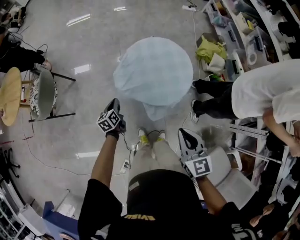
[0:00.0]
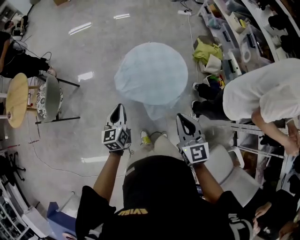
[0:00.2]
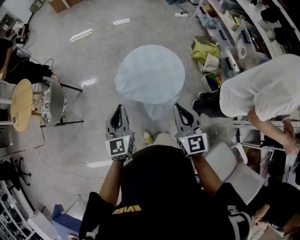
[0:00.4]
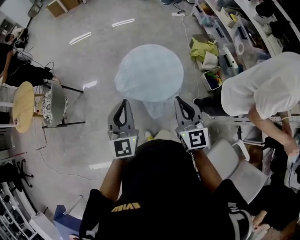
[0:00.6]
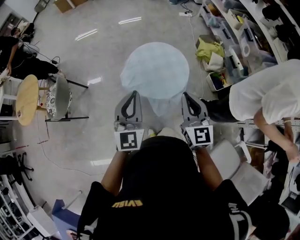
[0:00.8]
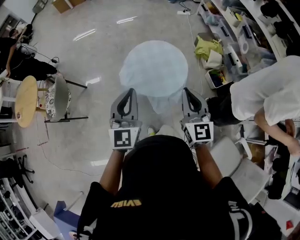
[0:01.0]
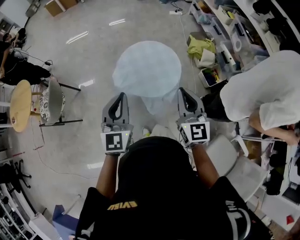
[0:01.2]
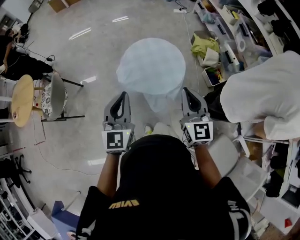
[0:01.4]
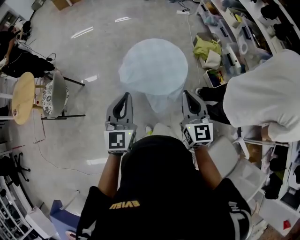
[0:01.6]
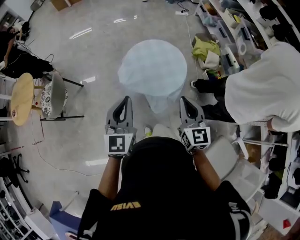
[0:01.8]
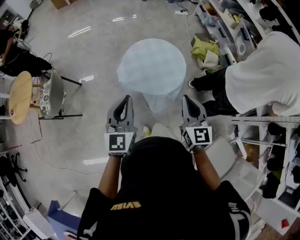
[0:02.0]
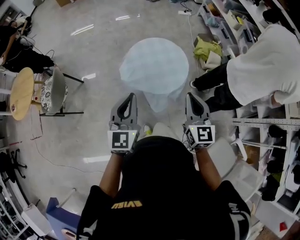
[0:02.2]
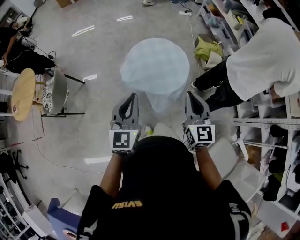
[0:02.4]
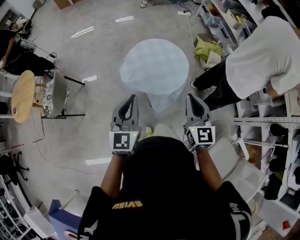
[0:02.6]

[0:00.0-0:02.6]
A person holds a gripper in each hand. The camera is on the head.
0:00.0 to 0:01.2: The left gripper goes about 40 cm upward, and tips its fingers upward by about 30 degrees. The right gripper moves upward, approximately 15 cm, and changes its angle by approximately 20 degrees.
0:01.2 to 0:02.6: The grippers stay close to where they were, moving slightly.

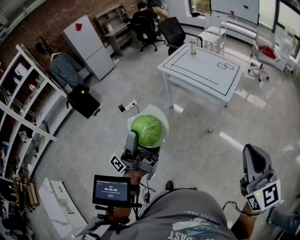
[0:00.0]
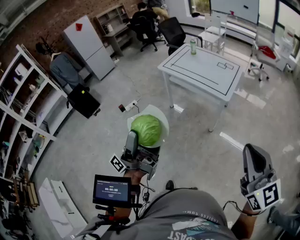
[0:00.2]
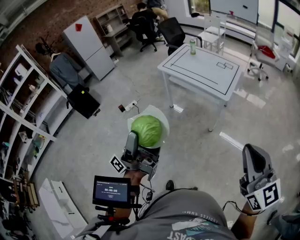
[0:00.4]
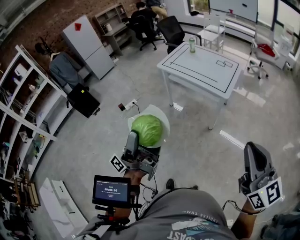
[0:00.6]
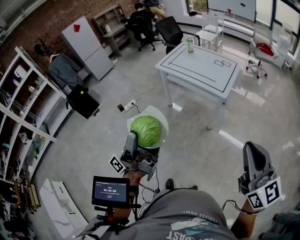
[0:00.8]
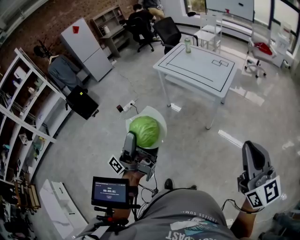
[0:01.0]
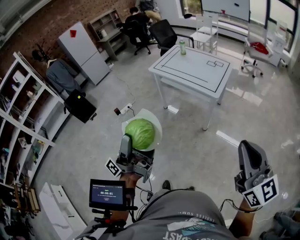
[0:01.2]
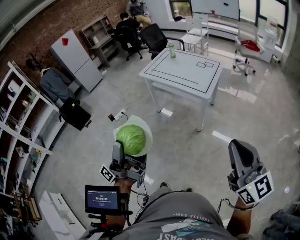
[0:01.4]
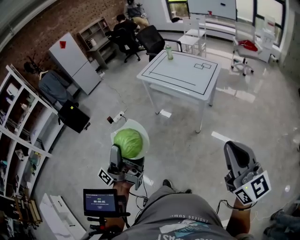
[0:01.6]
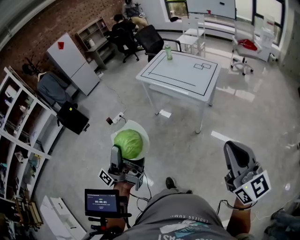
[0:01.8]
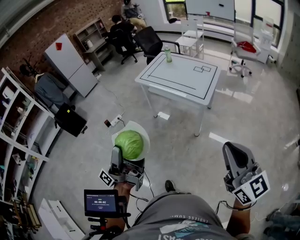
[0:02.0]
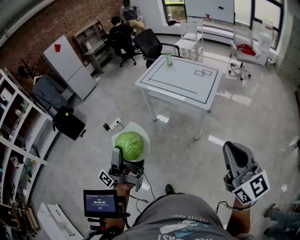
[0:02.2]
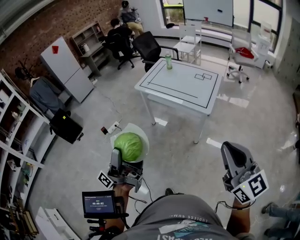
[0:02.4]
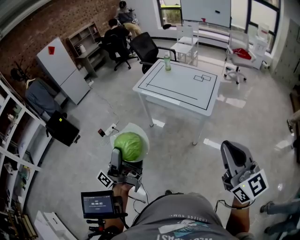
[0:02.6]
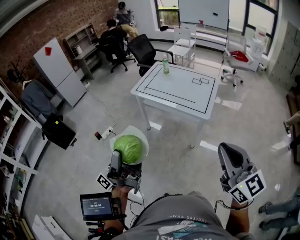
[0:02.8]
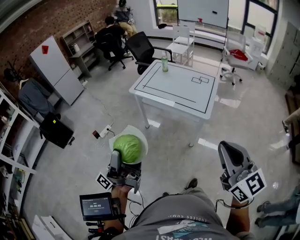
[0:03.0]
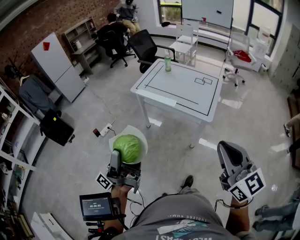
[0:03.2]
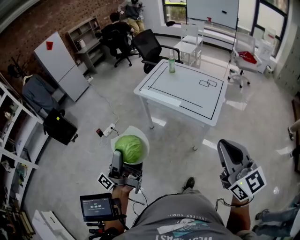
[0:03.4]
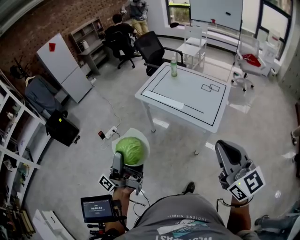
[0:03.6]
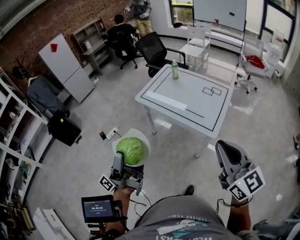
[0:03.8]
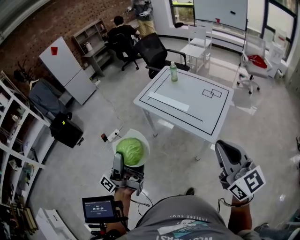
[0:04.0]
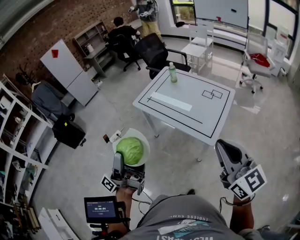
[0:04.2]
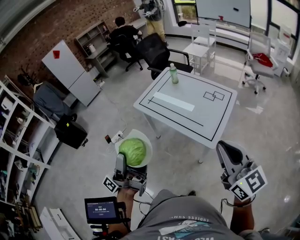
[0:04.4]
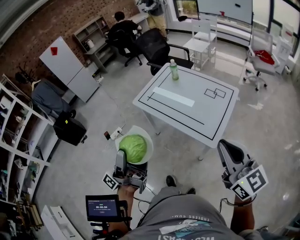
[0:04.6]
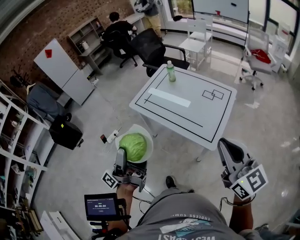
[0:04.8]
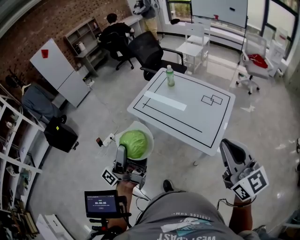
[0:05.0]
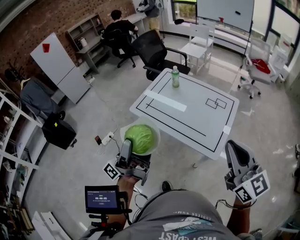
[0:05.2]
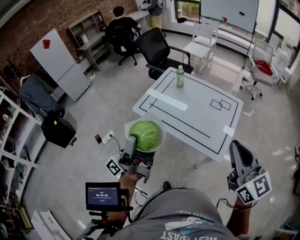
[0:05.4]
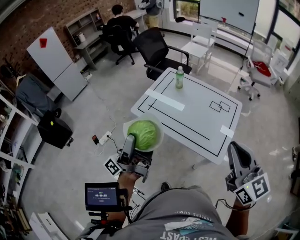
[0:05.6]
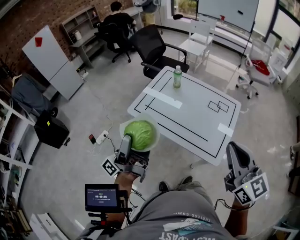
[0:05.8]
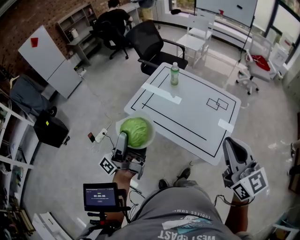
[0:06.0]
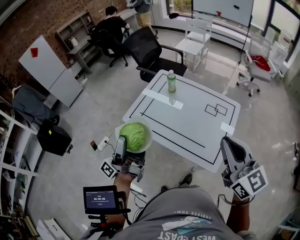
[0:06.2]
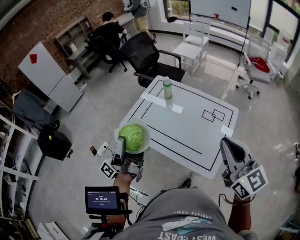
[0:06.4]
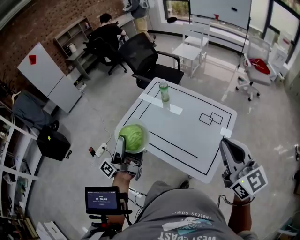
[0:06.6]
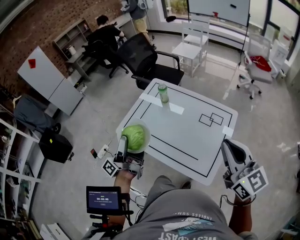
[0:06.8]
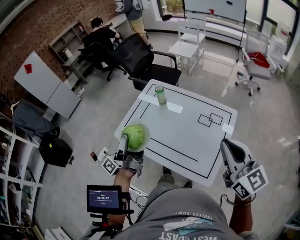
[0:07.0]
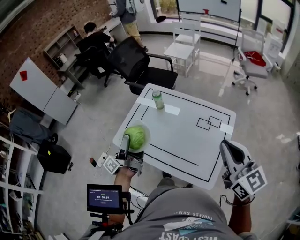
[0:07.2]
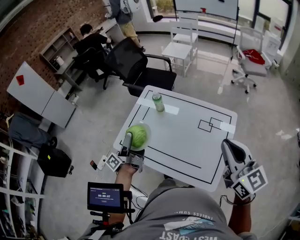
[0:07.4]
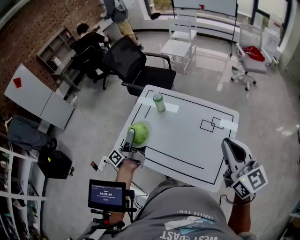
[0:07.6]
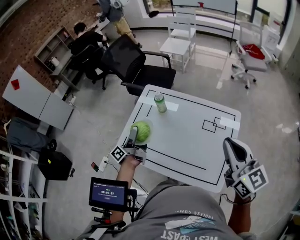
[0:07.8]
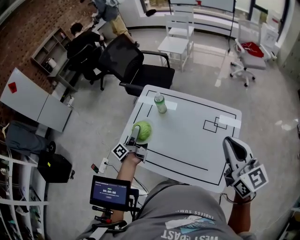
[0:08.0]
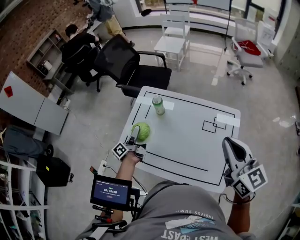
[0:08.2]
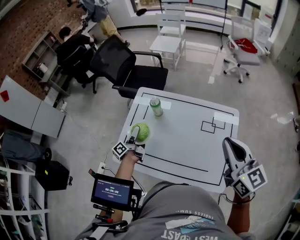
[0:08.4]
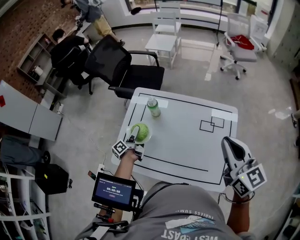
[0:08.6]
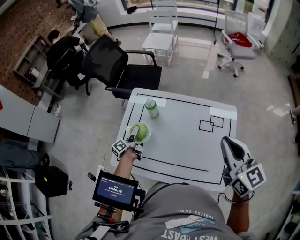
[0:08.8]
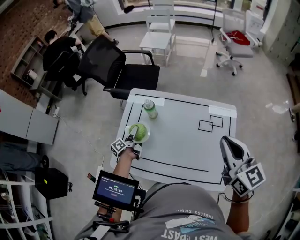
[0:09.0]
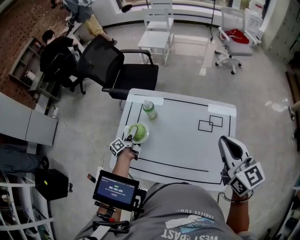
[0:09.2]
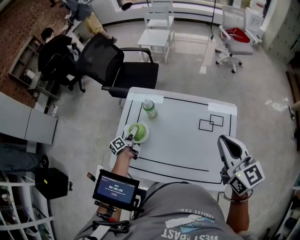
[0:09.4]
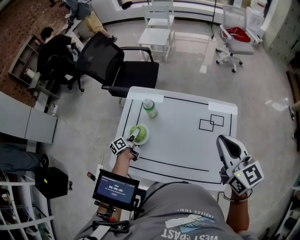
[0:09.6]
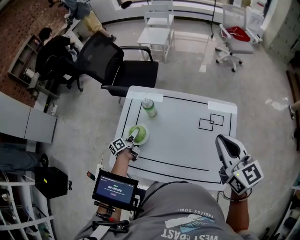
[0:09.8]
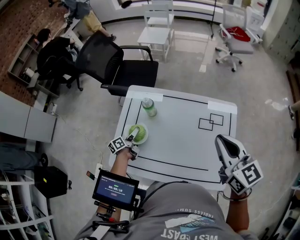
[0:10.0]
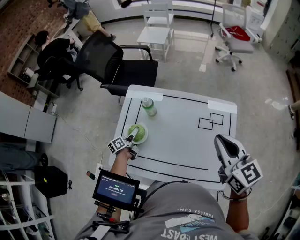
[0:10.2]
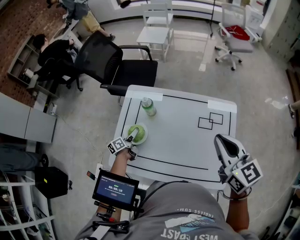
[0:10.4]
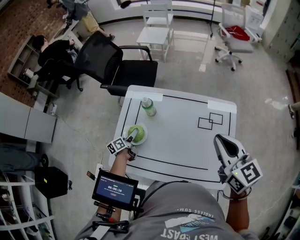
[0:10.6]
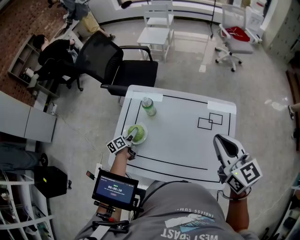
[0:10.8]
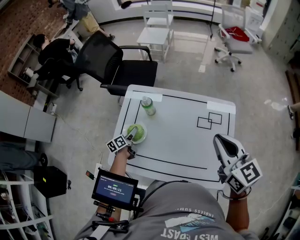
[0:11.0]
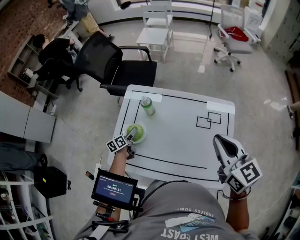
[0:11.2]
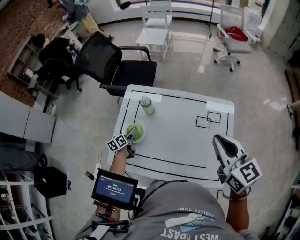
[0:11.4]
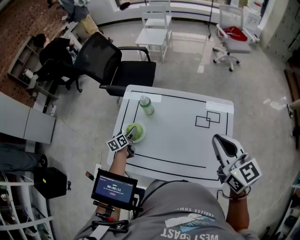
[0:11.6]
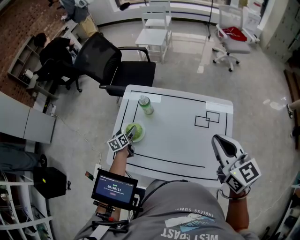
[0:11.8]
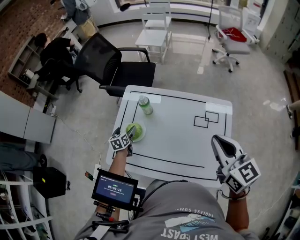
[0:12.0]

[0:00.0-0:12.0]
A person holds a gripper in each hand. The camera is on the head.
0:00.0 to 0:01.6: Both grippers travel together to the right, roughly 5 cm.
0:01.6 to 0:03.0: Both grippers move forward and to the left, about 20 cm.
0:03.0 to 0:04.4: Both grippers move forward and to the right, roughly 20 cm.
0:04.4 to 0:06.0: Both grippers travel together forward, approximately 20 cm.
0:06.0 to 0:07.6: The right gripper moves forward and to the right, about 20 cm; the left gripper shifts about 30 cm forward and downward, and swivels approximately 20 degrees.
0:07.6 to 0:09.0: The left gripper moves downward and forward, approximately 25 cm, and rotates about 30 degrees. Meanwhile the right gripper goes roughly 5 cm forward.
0:09.0 to 0:10.4: The grippers stay close to where they were, moving slightly.
0:10.4 to 0:12.0: The left gripper turns by about 40 degrees.

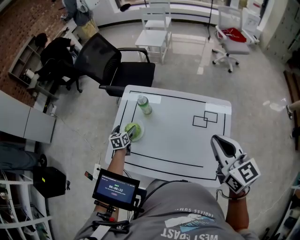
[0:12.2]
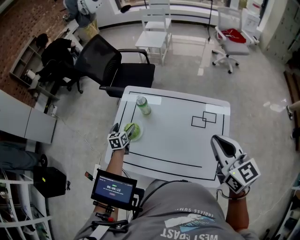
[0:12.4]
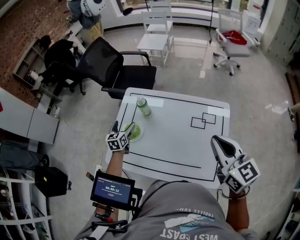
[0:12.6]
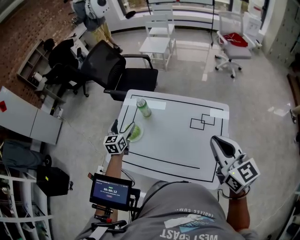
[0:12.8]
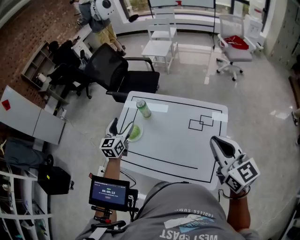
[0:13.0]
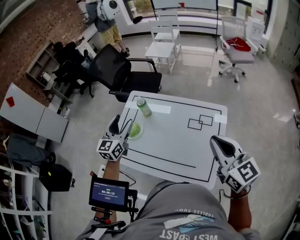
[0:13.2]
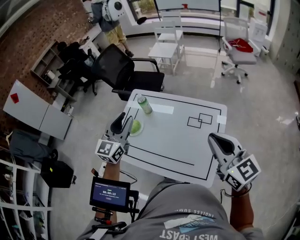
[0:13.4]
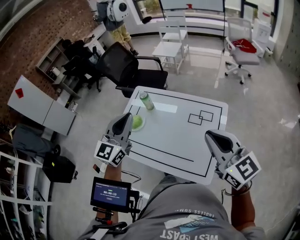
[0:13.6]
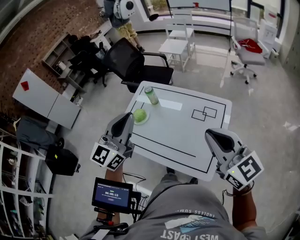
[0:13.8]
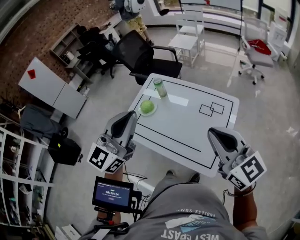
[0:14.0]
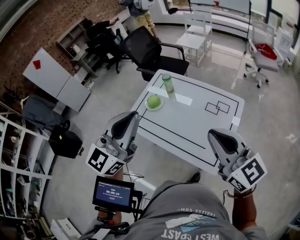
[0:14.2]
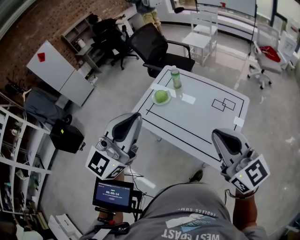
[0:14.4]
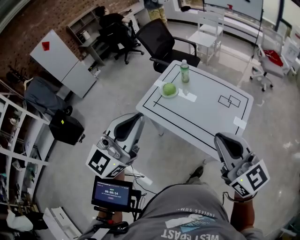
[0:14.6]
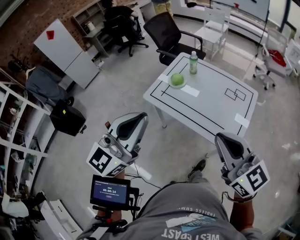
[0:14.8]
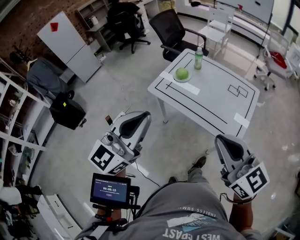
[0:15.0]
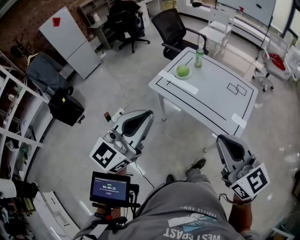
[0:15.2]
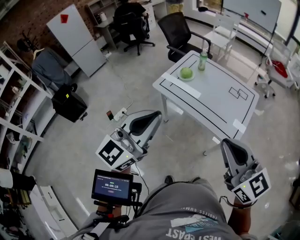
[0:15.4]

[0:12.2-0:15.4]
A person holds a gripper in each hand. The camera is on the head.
0:12.2 to 0:13.8: The left gripper is displaced upward and backward by roughly 50 cm, points its fingers roughly 50 degrees further upward, and closes; the right gripper travels backward and upward by about 15 cm, and turns by some 20 degrees.
0:13.8 to 0:15.4: The two grippers go approximately 35 cm backward and to the left.

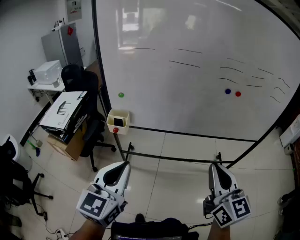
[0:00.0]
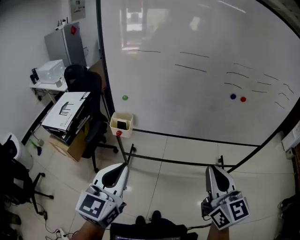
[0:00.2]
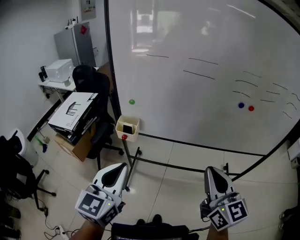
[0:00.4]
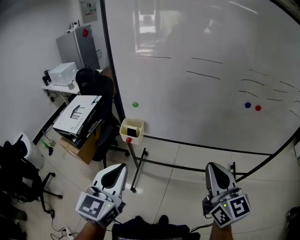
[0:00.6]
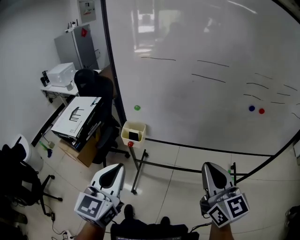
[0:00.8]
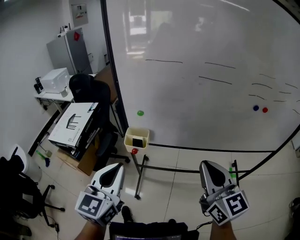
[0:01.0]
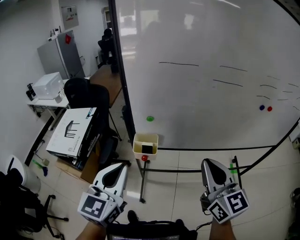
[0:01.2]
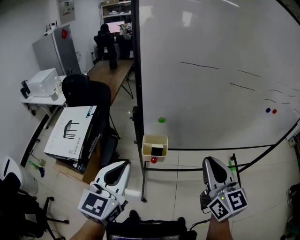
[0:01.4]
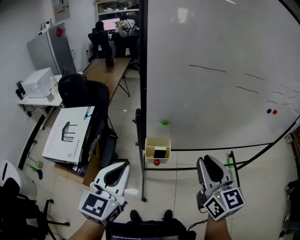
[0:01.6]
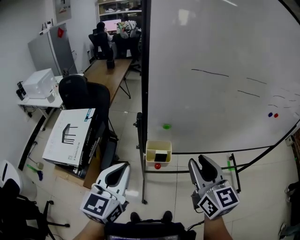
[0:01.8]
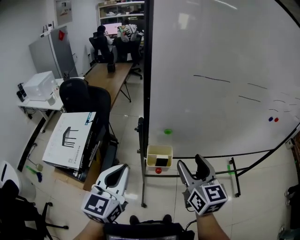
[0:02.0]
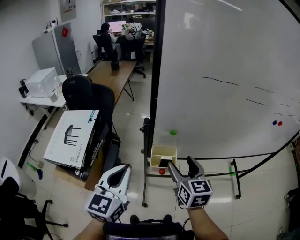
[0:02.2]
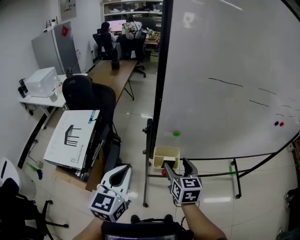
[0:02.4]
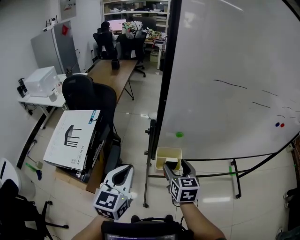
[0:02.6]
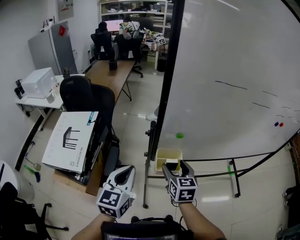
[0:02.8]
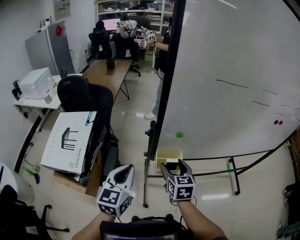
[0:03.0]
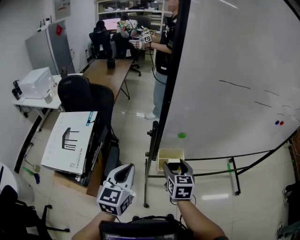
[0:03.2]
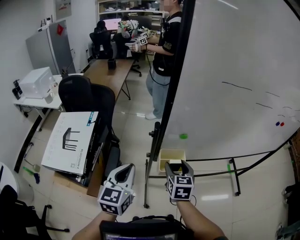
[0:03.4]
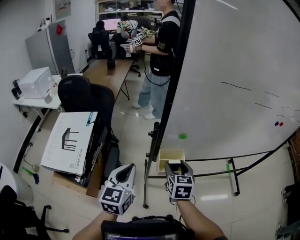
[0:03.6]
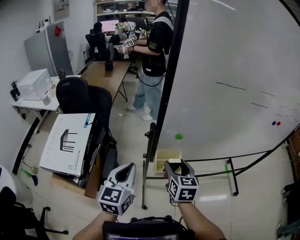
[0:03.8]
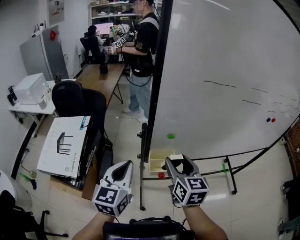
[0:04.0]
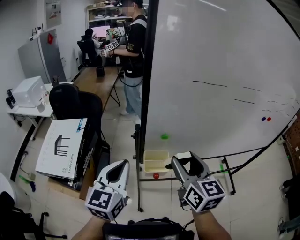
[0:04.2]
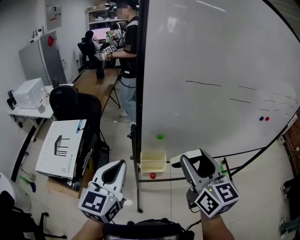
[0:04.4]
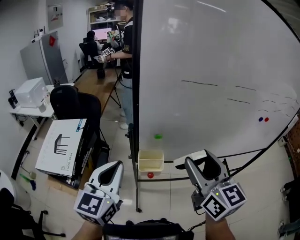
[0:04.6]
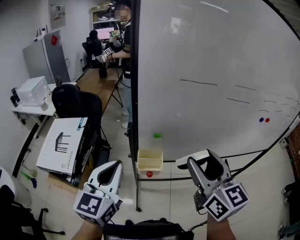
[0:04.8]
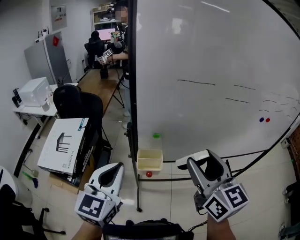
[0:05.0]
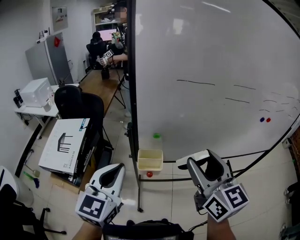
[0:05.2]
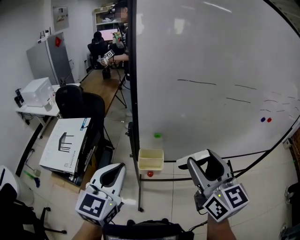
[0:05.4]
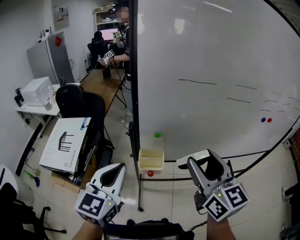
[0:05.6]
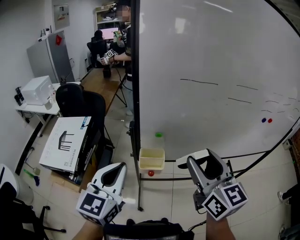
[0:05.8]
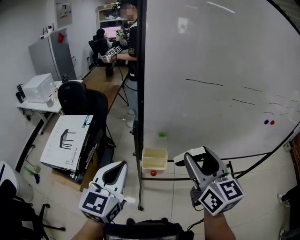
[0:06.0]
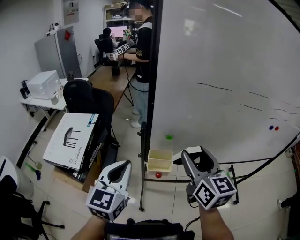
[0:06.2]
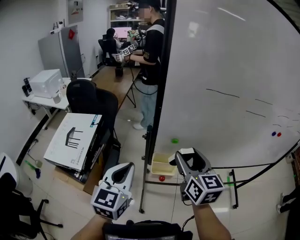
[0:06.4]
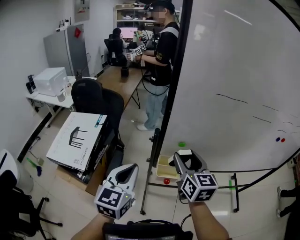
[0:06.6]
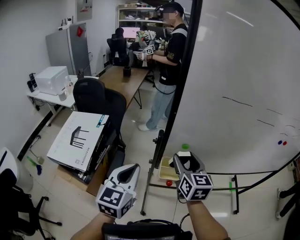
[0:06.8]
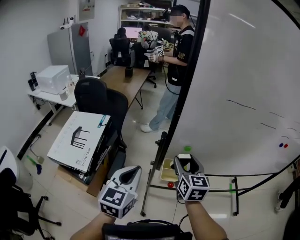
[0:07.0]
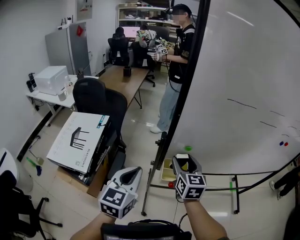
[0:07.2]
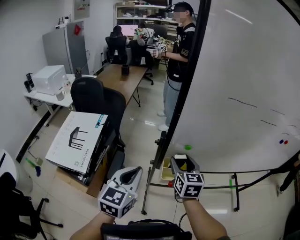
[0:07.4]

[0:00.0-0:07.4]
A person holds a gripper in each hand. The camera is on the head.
0:00.0 to 0:01.4: The two grippers go some 35 cm to the left and forward.
0:01.4 to 0:03.0: The right gripper shifts roughly 30 cm downward, to the left and forward, changes its angle by roughly 30 degrees, and opens up. The left gripper shifts roughly 20 cm downward, forward and to the left.
0:03.0 to 0:04.4: The left gripper goes roughly 15 cm upward and to the right. Meanwhile the right gripper shifts about 25 cm upward and to the right, and turns by some 30 degrees.
0:04.4 to 0:06.0: The grippers make only small movements.
0:06.0 to 0:07.4: The right gripper is displaced downward, forward and to the left by some 25 cm, while the left gripper travels downward, to the left and forward by about 10 cm.
